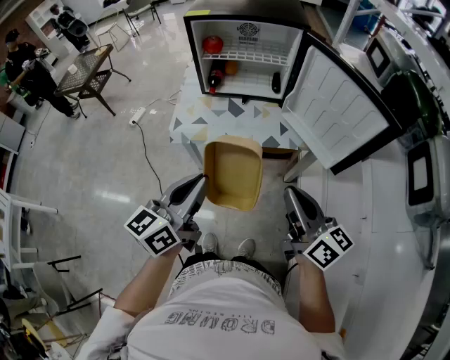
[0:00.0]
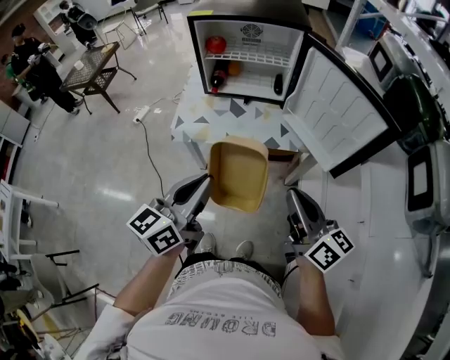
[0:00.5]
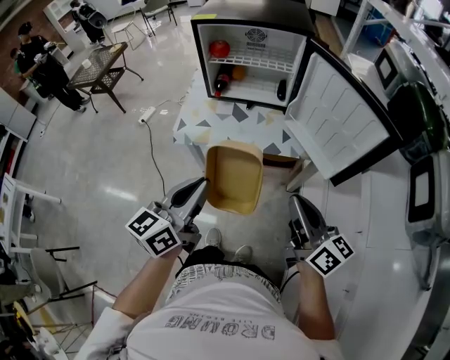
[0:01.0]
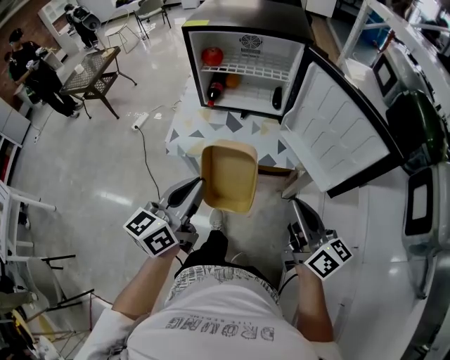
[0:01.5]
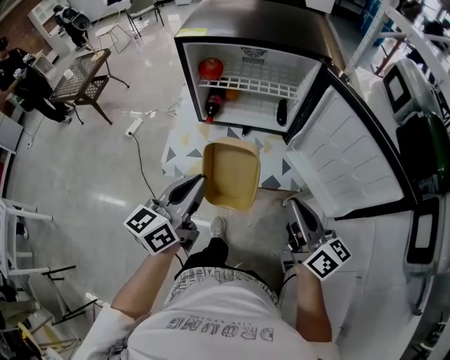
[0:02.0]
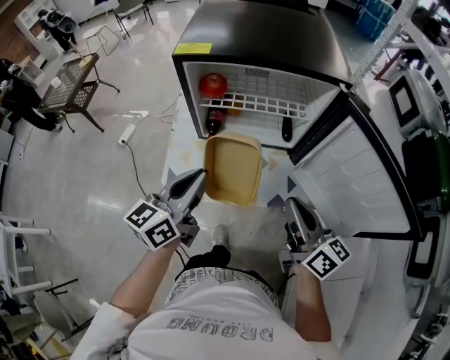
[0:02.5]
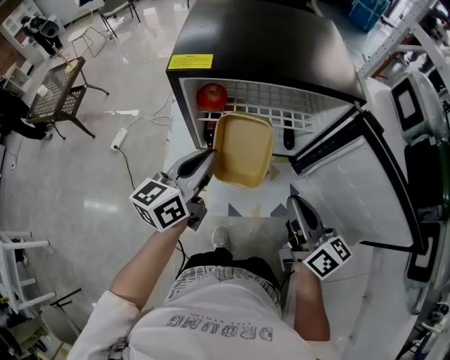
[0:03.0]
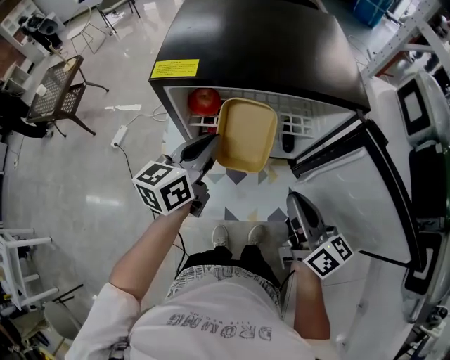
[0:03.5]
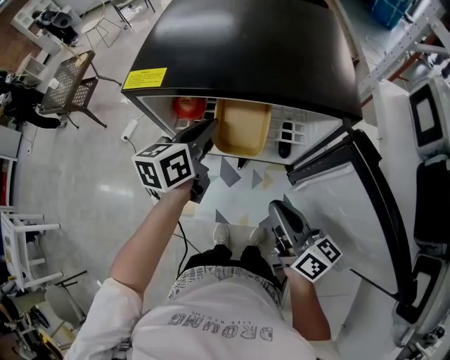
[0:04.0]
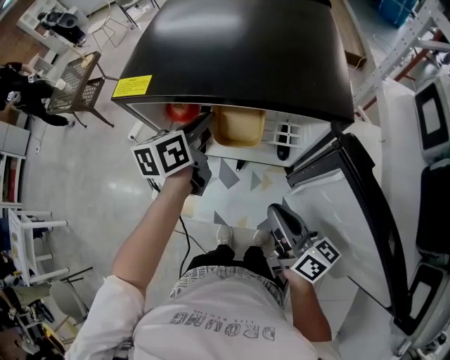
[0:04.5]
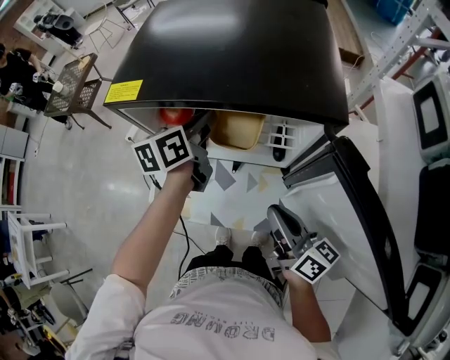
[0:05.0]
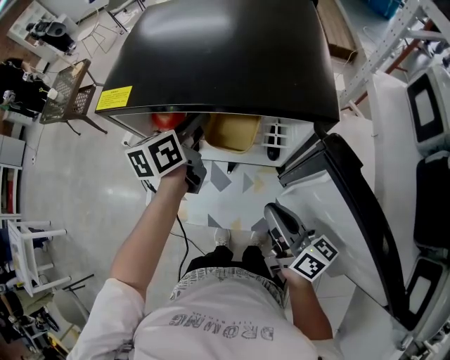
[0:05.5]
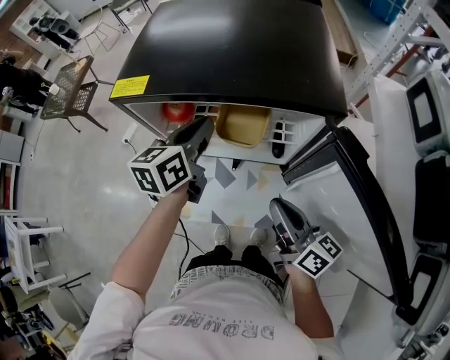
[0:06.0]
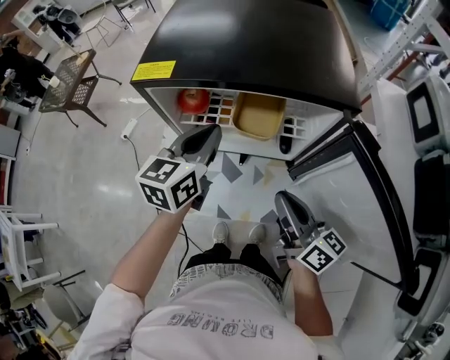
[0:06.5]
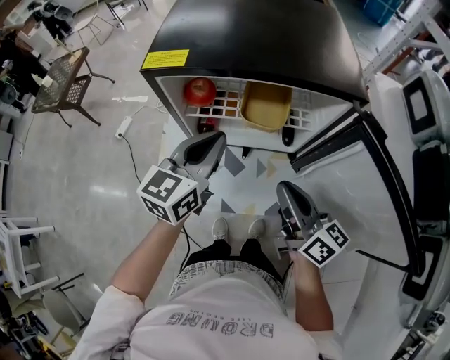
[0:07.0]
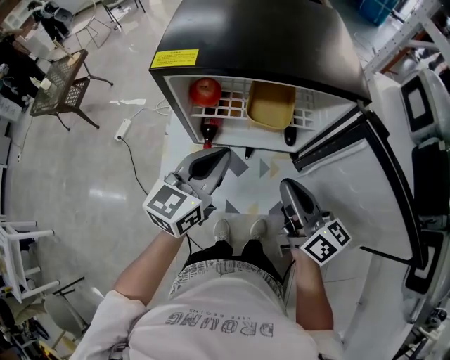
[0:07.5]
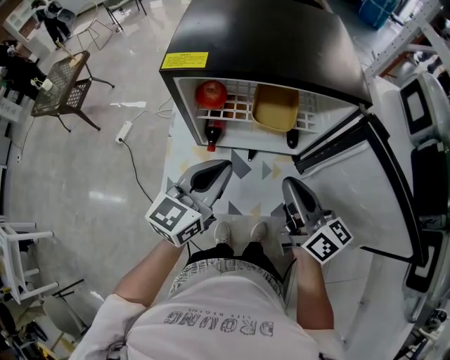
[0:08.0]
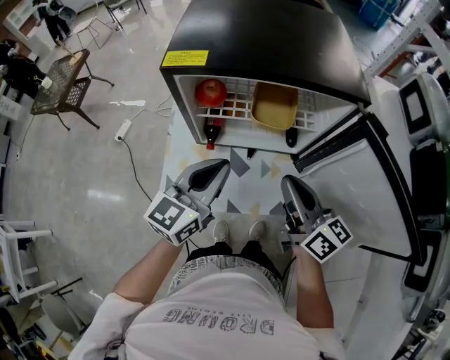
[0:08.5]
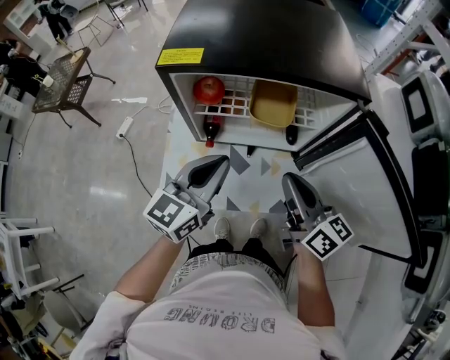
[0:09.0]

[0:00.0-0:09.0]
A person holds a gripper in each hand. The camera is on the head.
0:00.0 to 0:02.0: The two grippers go some 15 cm forward.
0:02.0 to 0:04.5: The right gripper goes some 20 cm forward; the left gripper moves forward, roughly 35 cm, and swivels approximately 20 degrees.
0:04.5 to 0:07.0: The right gripper ends up about 5 cm from where it was, while the left gripper heads backward, covering about 10 cm, and changes its angle by roughly 30 degrees.
0:07.0 to 0:09.0: The left gripper heads backward, covering approximately 5 cm.

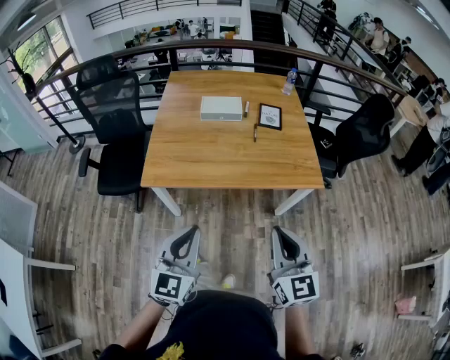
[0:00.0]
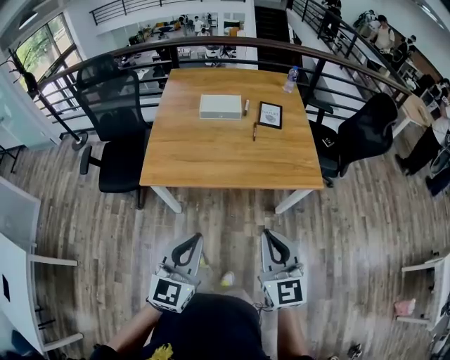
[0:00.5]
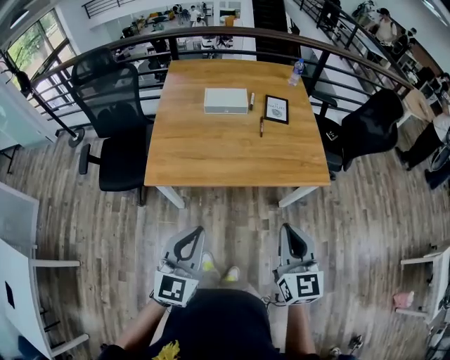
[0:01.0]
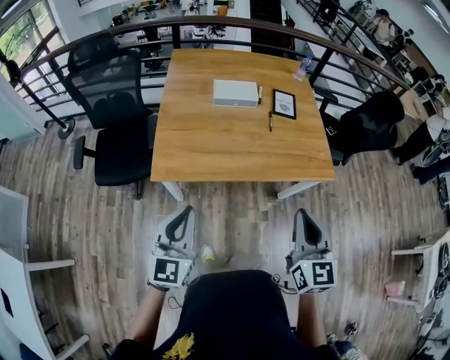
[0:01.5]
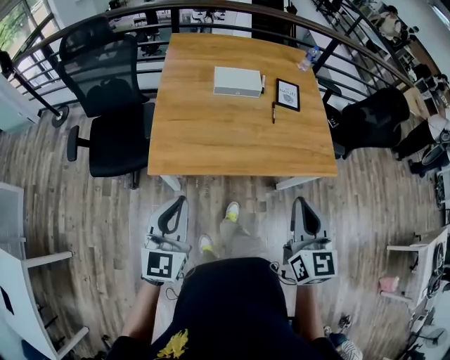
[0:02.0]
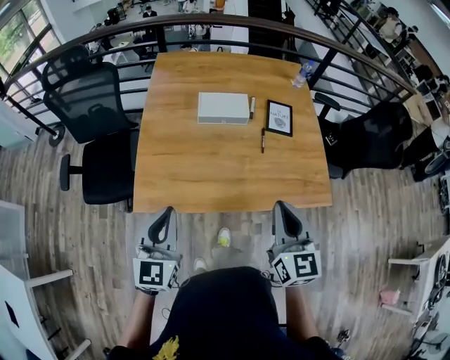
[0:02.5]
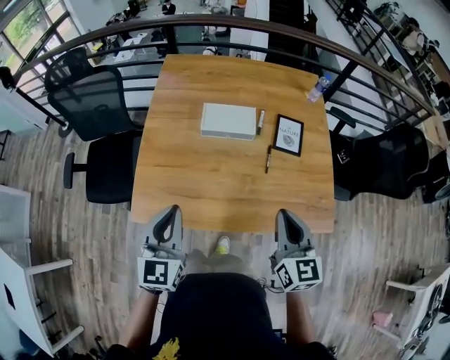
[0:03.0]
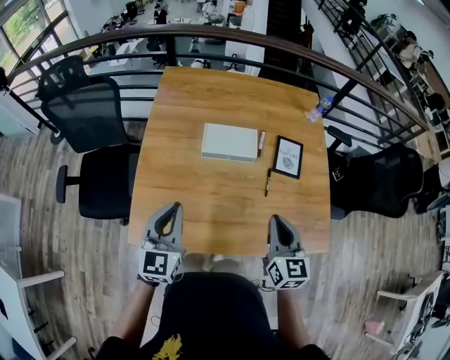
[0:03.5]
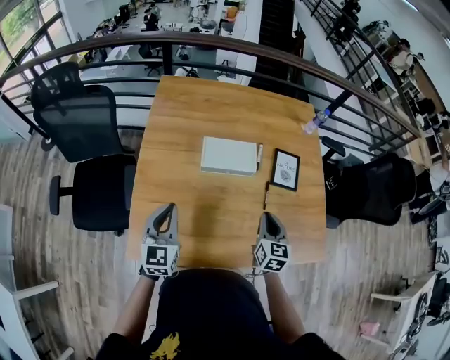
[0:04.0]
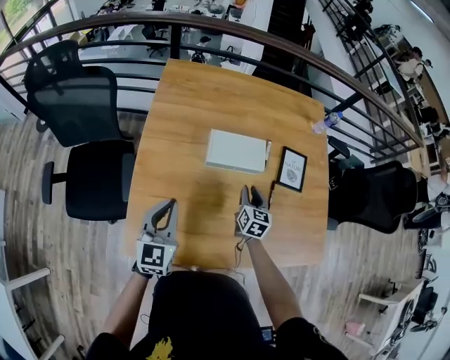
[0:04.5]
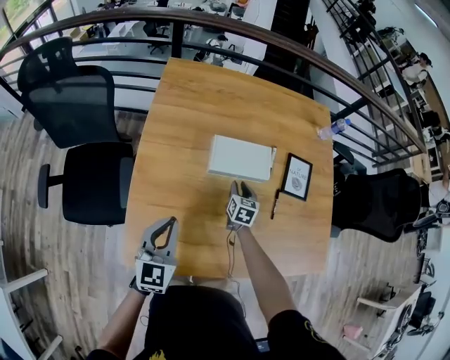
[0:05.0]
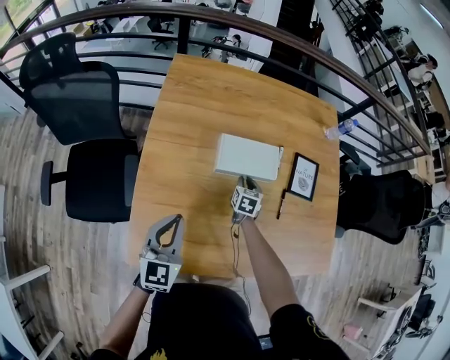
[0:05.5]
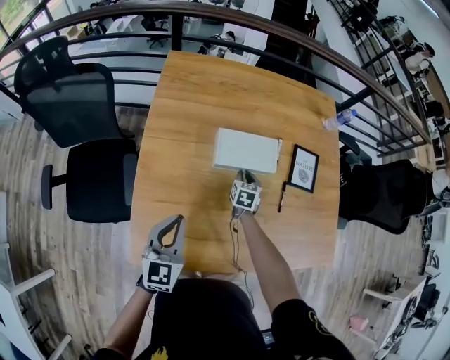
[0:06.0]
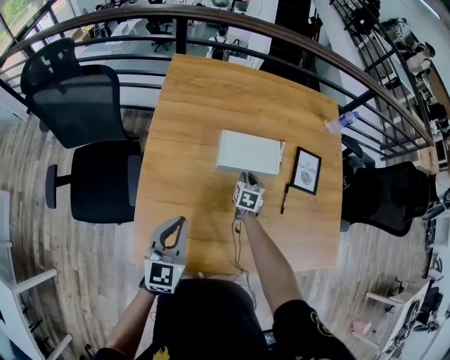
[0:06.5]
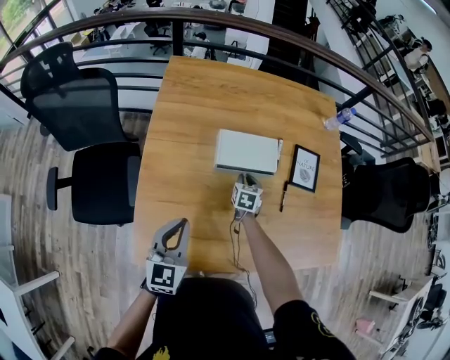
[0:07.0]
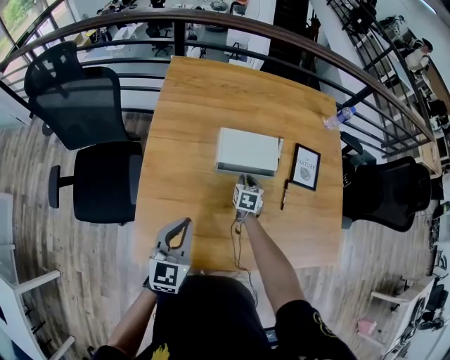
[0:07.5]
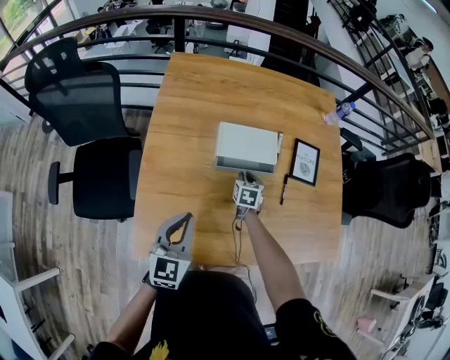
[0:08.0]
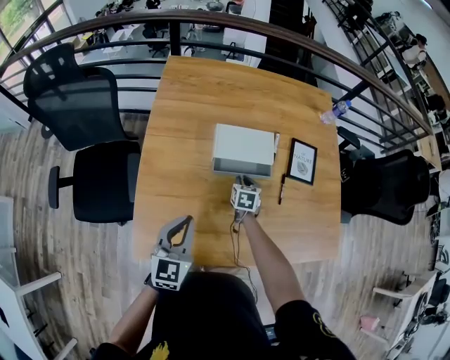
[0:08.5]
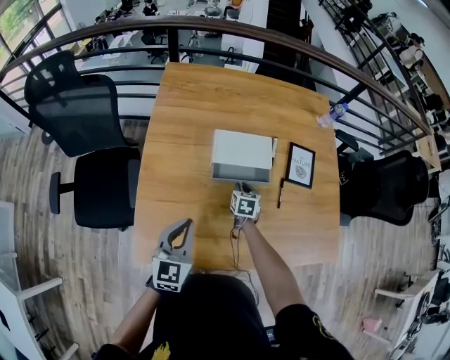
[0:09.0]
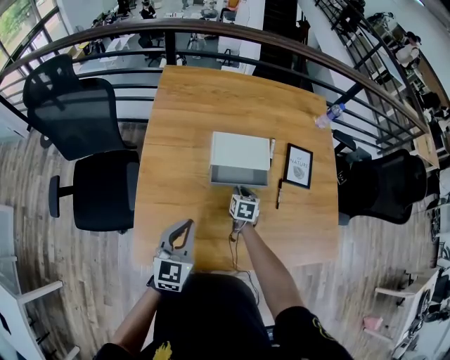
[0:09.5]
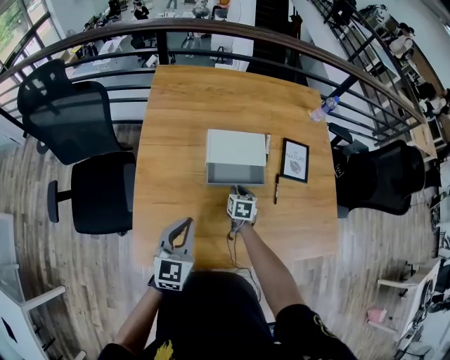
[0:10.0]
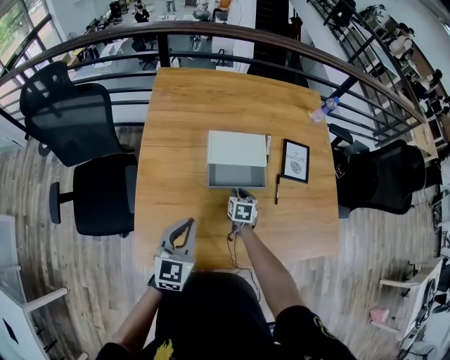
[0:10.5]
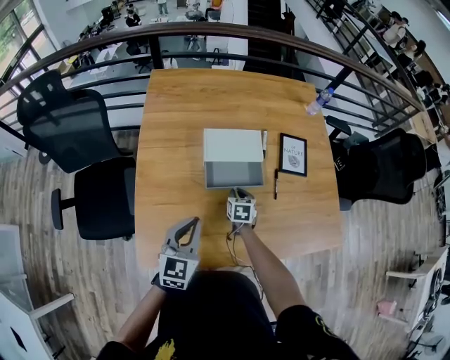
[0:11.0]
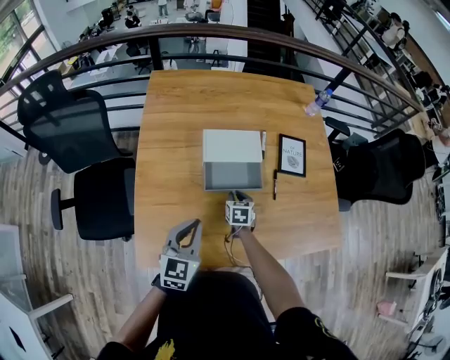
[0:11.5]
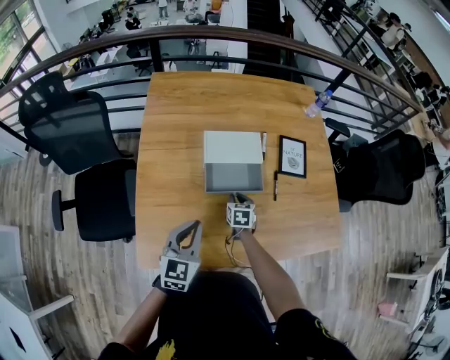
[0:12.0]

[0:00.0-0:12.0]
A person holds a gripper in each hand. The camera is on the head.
0:00.0 to 0:02.0: The left gripper heads to the left and forward, covering about 20 cm. The right gripper goes about 15 cm forward and to the left.
0:02.0 to 0:04.0: The right gripper goes some 50 cm forward and downward. The left gripper heads forward, covering approximately 40 cm.
0:04.0 to 0:06.0: The right gripper travels downward, forward and to the left by some 30 cm. Meanwhile the left gripper goes roughly 5 cm downward.
0:06.0 to 0:08.0: The grippers stay close to where they were, moving slightly.
0:08.0 to 0:10.0: The grippers make only small movements.
0:10.0 to 0:12.0: There are only small adjustments of the grippers.

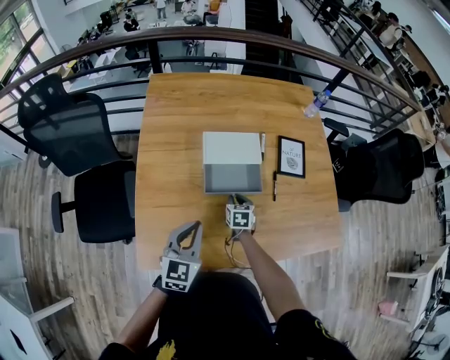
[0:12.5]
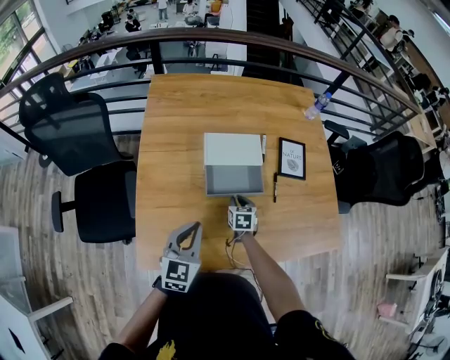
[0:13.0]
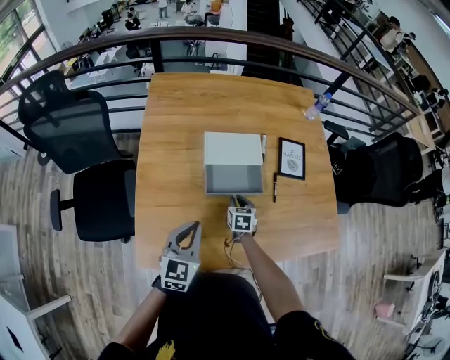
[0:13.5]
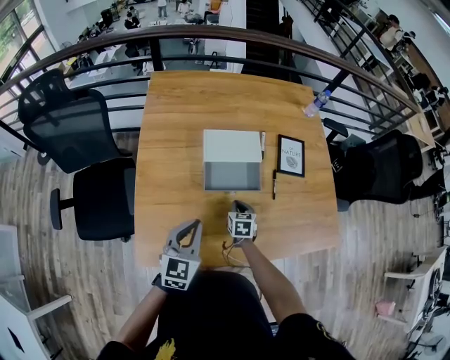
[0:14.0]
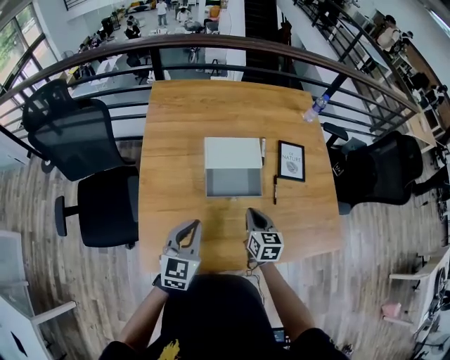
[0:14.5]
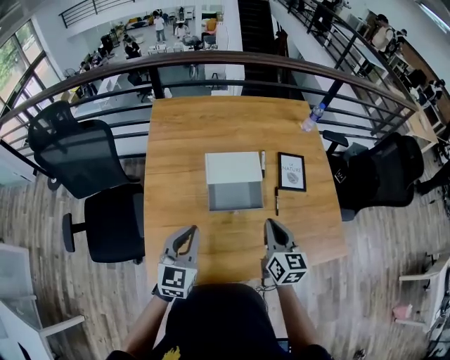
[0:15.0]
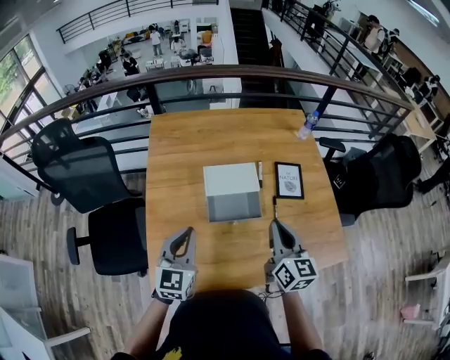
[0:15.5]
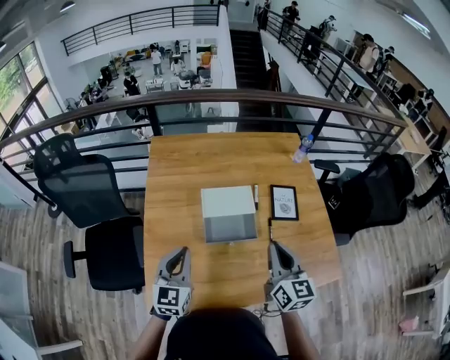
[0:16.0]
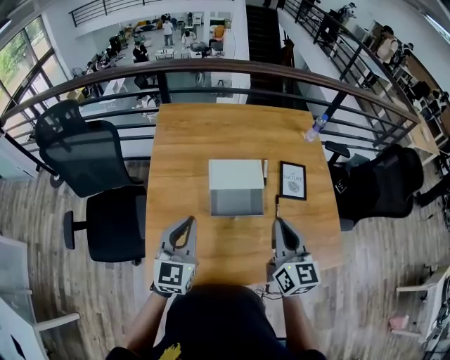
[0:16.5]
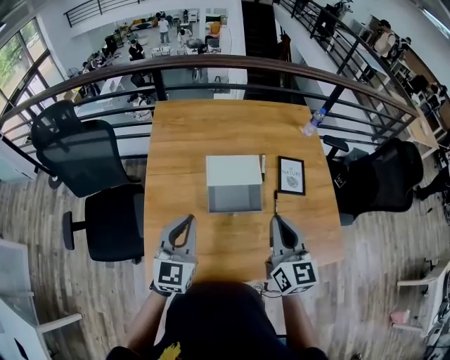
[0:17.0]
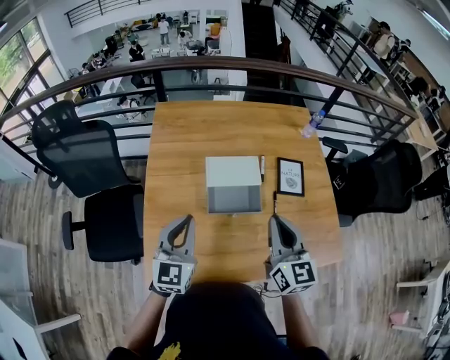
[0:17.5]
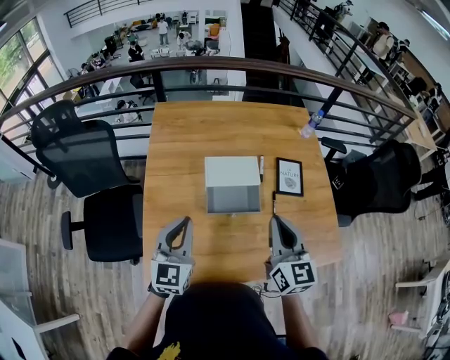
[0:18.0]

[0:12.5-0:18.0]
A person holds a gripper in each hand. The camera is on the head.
0:12.5 to 0:14.5: The right gripper goes roughly 15 cm upward and backward.
0:14.5 to 0:16.0: The right gripper is displaced upward by some 20 cm, and changes its angle by some 20 degrees; the left gripper shifts roughly 10 cm upward.
0:16.0 to 0:18.0: The grippers stay close to where they were, moving slightly.
